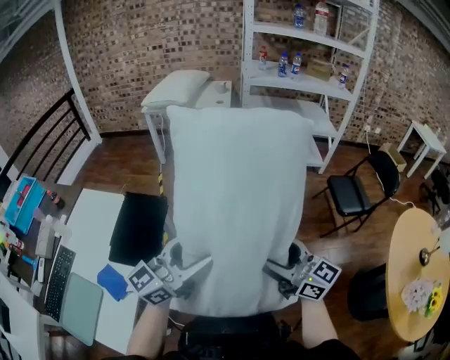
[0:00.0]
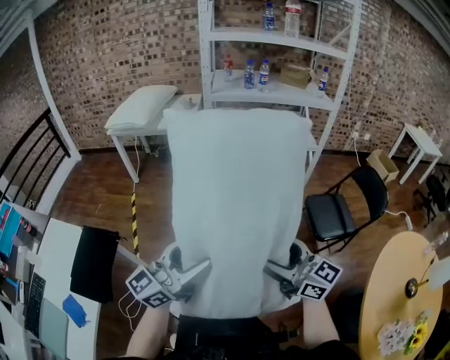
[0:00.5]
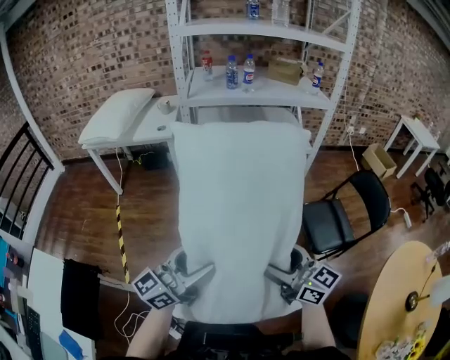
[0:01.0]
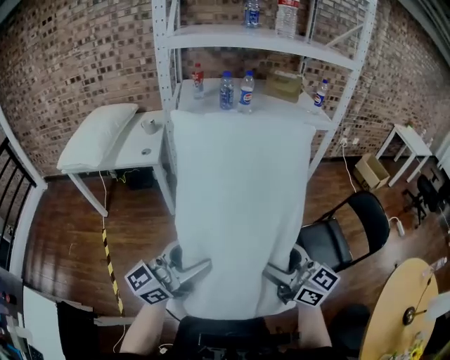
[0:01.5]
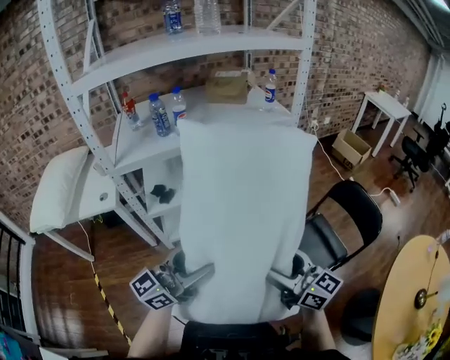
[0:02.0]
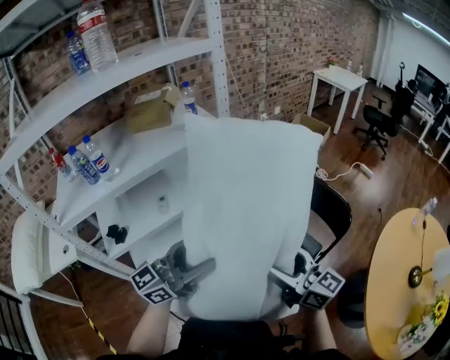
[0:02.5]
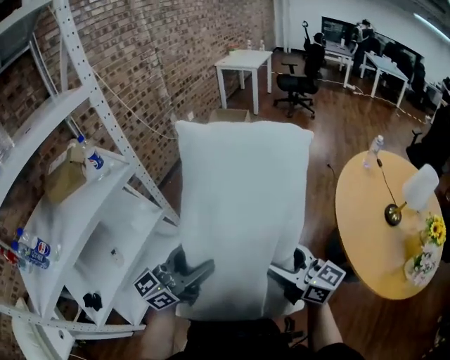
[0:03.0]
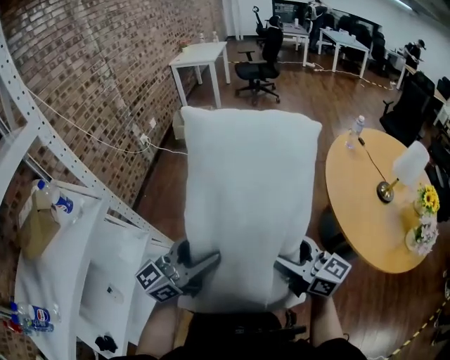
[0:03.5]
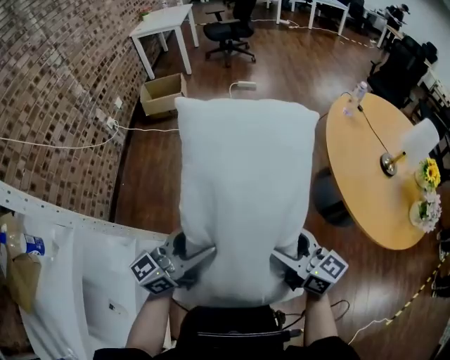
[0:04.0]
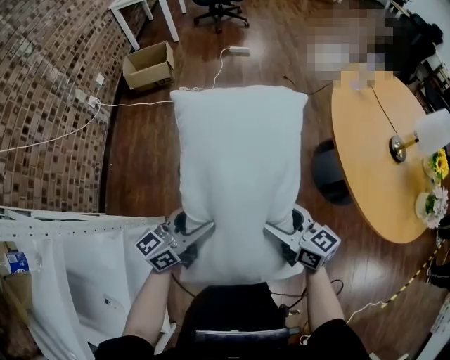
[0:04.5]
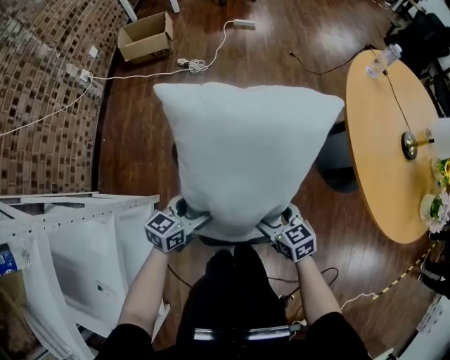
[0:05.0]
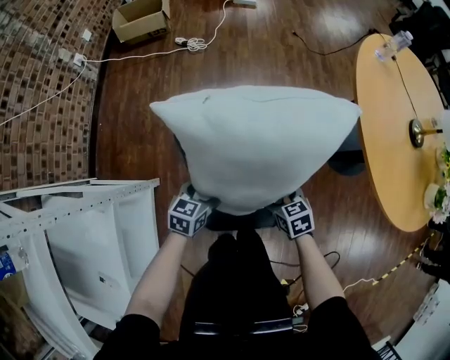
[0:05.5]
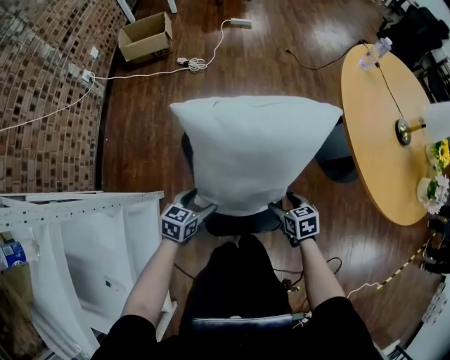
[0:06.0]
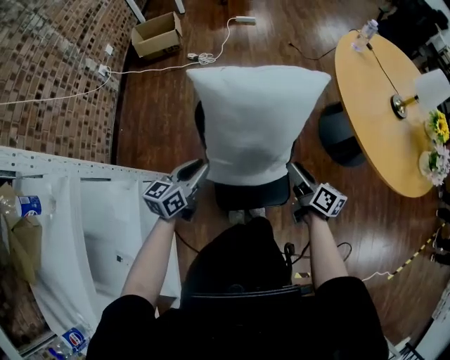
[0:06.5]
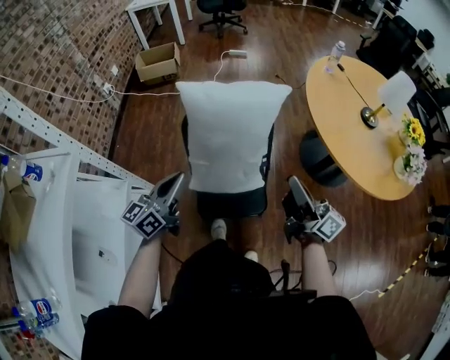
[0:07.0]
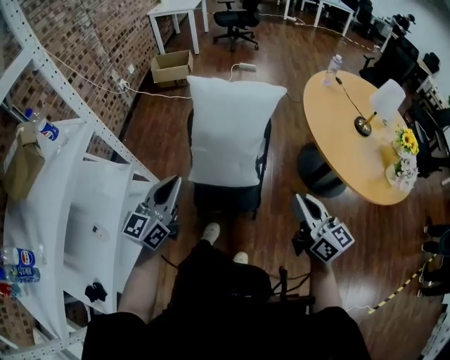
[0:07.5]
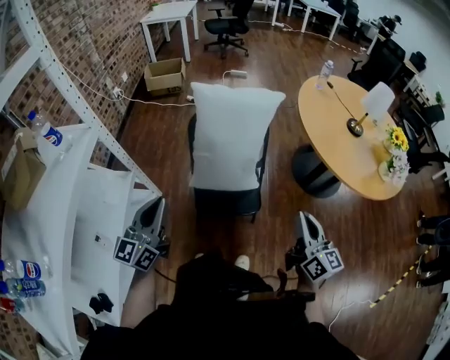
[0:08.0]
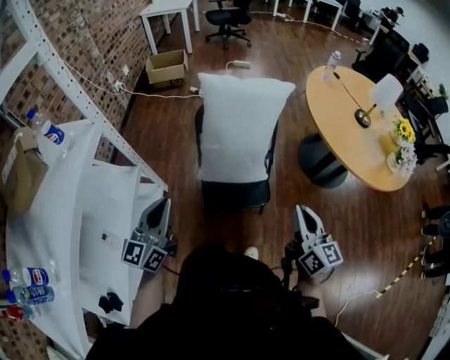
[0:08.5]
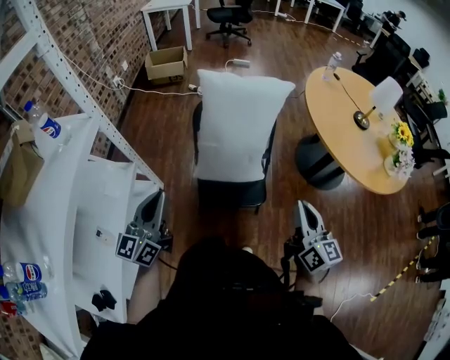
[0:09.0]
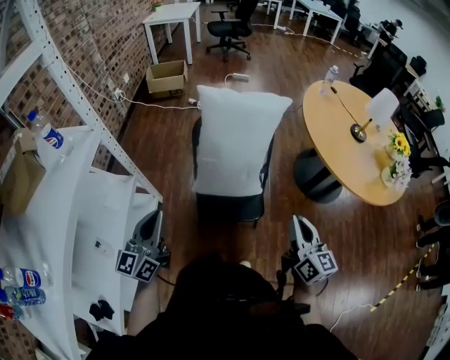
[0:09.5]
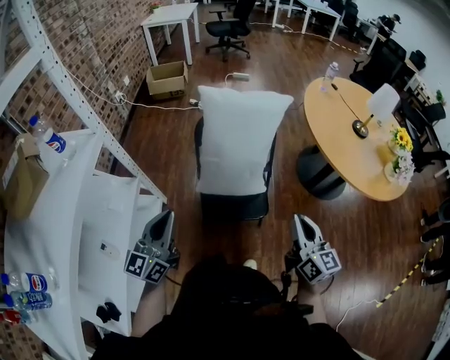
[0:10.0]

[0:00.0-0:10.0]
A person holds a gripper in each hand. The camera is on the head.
0:00.0 to 0:02.0: The two grippers travel together, approximately 90 cm. The right gripper changes its angle by roughly 30 degrees. Meanwhile the left gripper rotates approximately 30 degrees.
0:02.0 to 0:04.0: The pair of grippers is taken some 60 cm. The left gripper turns by roughly 70 degrees. Meanwhile the right gripper swivels approximately 70 degrees.
0:04.0 to 0:06.0: The two grippers go approximately 30 cm downward. The left gripper points its fingers approximately 50 degrees further downward. Meanwhile the right gripper tips its fingers downward by about 50 degrees.
0:06.0 to 0:08.0: Both grippers move upward and backward, some 50 cm. The left gripper tilts its fingers approximately 50 degrees upward, and closes up. Meanwhile the right gripper points its fingers about 60 degrees further upward, and closes its fingers.
0:08.0 to 0:10.0: The right gripper heads to the left, covering about 5 cm.

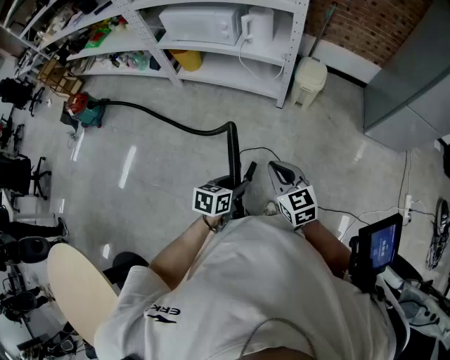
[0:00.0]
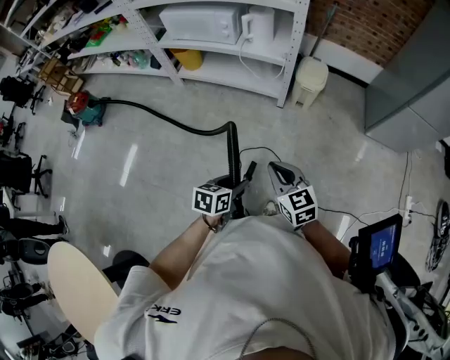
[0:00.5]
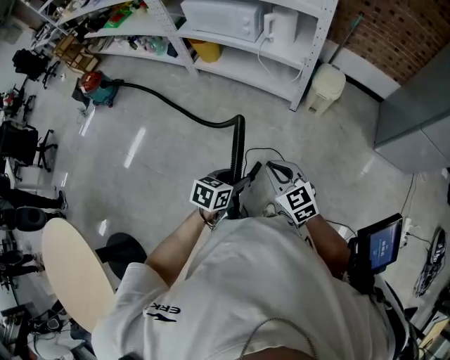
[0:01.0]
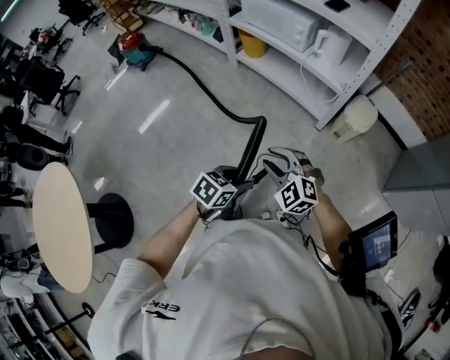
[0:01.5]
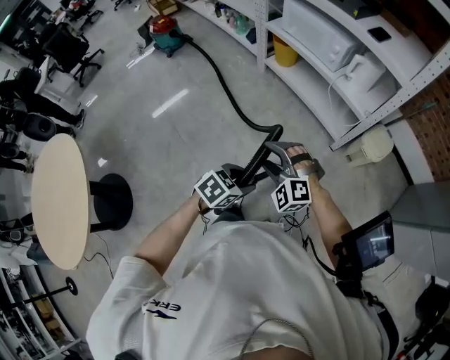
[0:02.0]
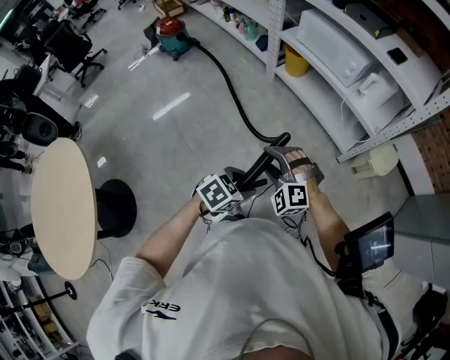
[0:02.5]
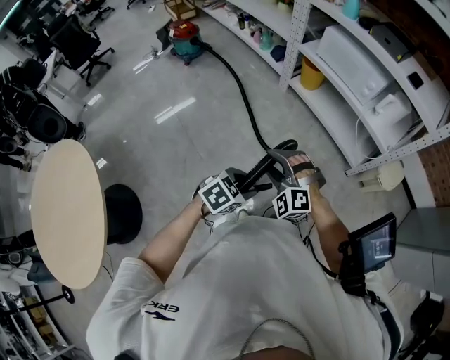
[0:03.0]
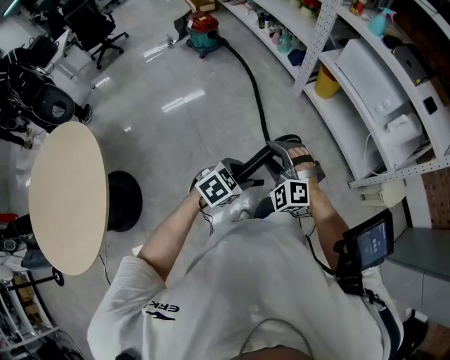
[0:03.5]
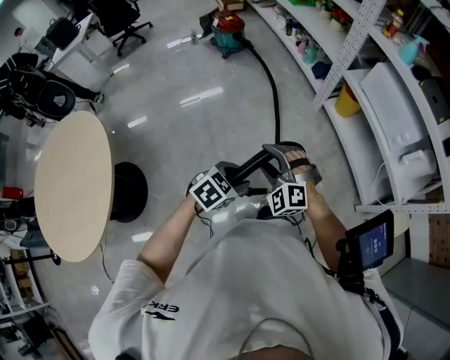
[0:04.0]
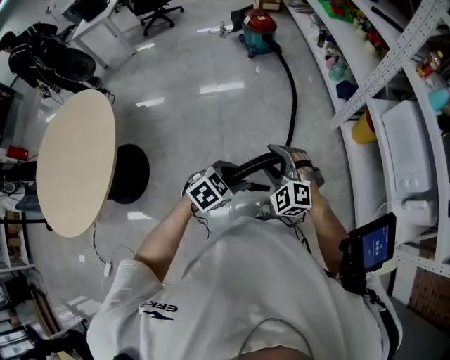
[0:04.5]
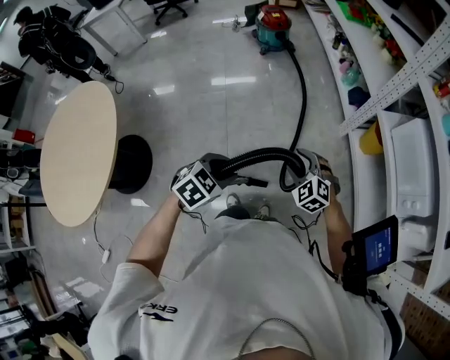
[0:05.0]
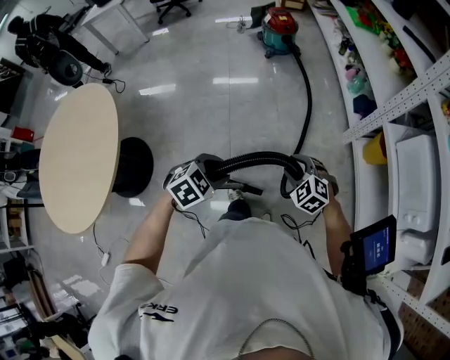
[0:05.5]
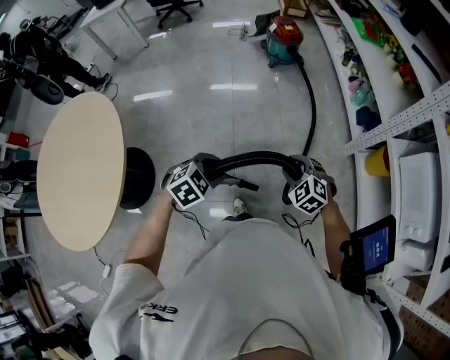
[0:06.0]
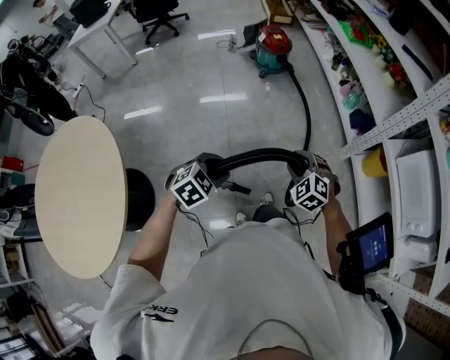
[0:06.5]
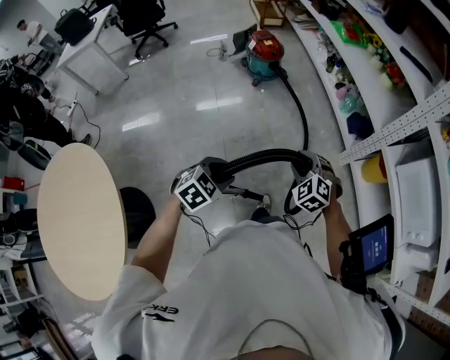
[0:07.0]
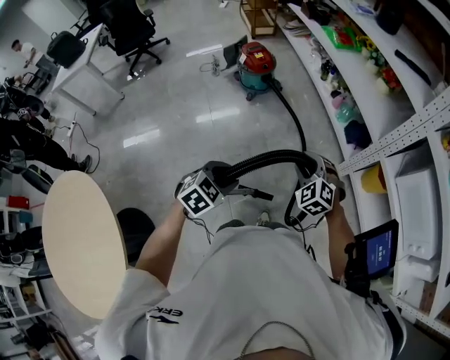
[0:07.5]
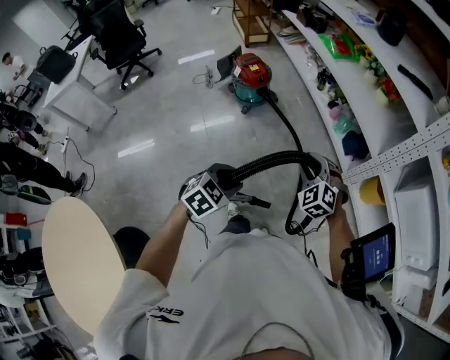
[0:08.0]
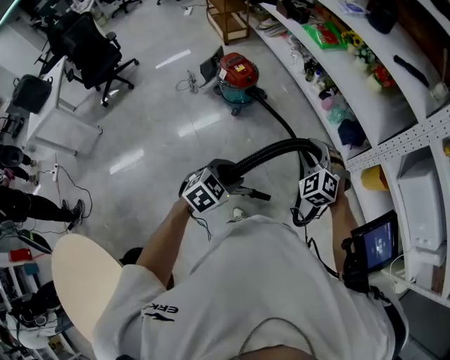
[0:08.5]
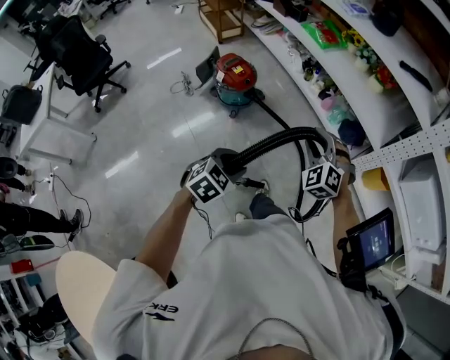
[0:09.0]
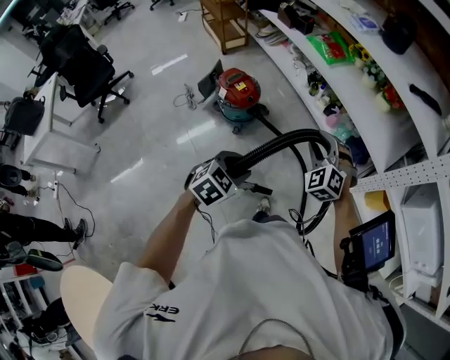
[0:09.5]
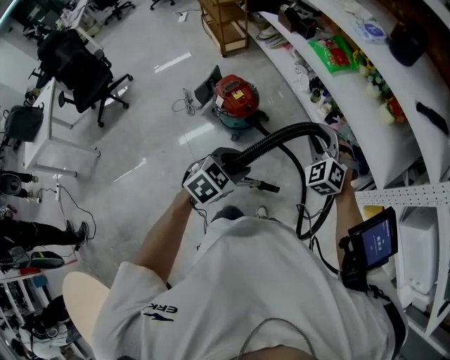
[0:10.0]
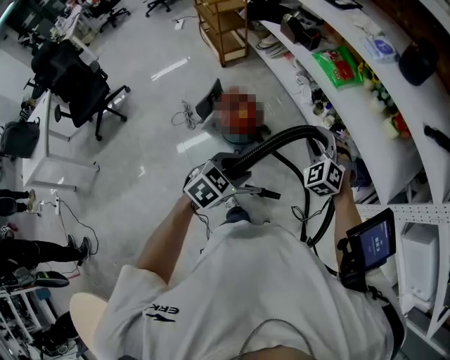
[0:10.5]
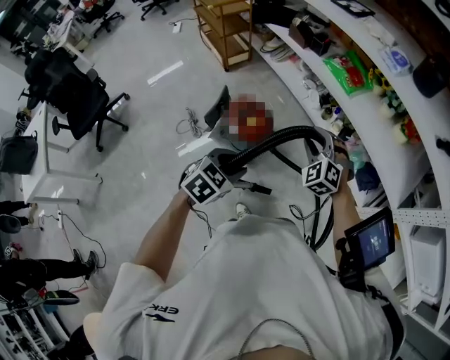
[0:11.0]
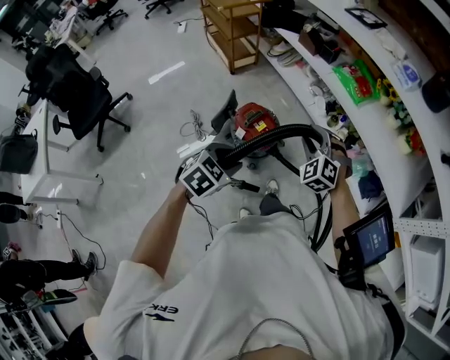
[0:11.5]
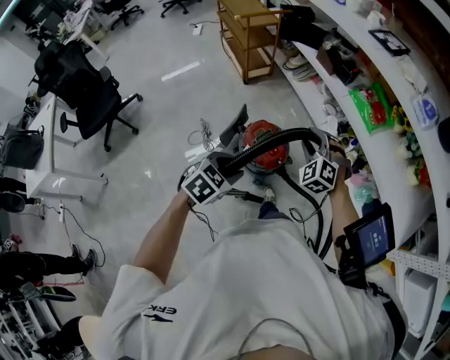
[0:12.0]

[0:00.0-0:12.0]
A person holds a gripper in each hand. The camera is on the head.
0:00.0 to 0:02.0: The right gripper moves to the left and forward, some 15 cm, rotates around the line of its fingers by approximately 80 degrees, counterclockwise from behind, and opens up. Meanwhile the left gripper shifts by about 5 cm.
0:02.0 to 0:04.0: The grippers both shift to the left by roughly 35 cm.
0:04.0 to 0:06.0: The right gripper shifts roughly 25 cm forward, and rotates roughly 30 degrees, while the left gripper goes roughly 30 cm to the left and forward.
0:06.0 to 0:08.0: Both grippers move forward, approximately 40 cm. The right gripper changes its angle by some 30 degrees.
0:08.0 to 0:10.0: The grippers both shift forward and to the left by roughly 35 cm.
0:10.0 to 0:12.0: Both grippers move to the left and forward, approximately 40 cm.

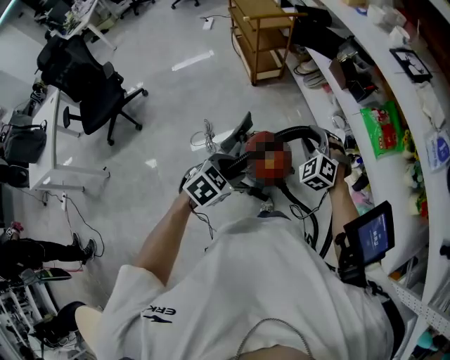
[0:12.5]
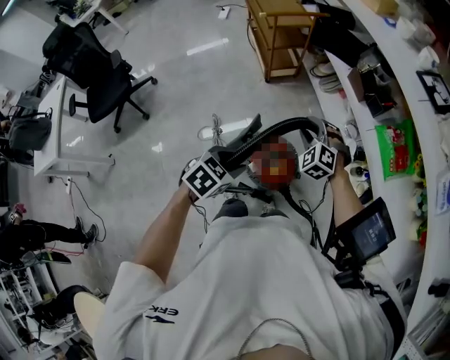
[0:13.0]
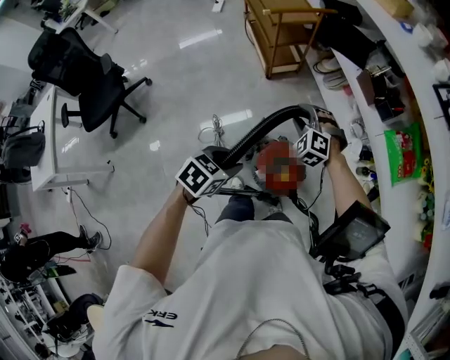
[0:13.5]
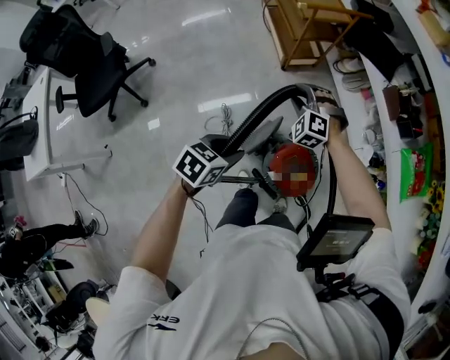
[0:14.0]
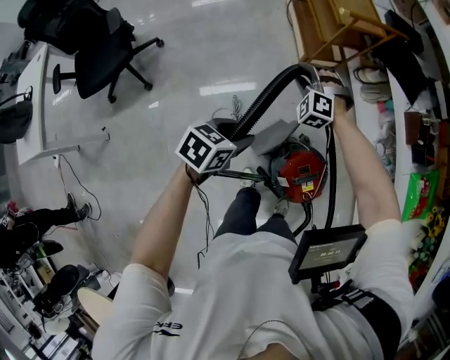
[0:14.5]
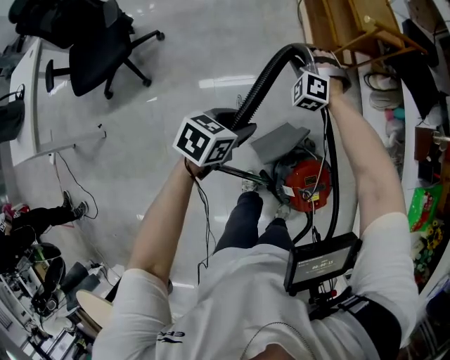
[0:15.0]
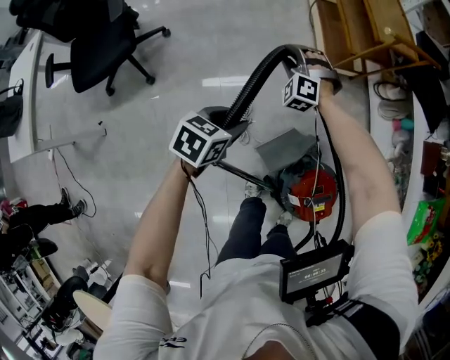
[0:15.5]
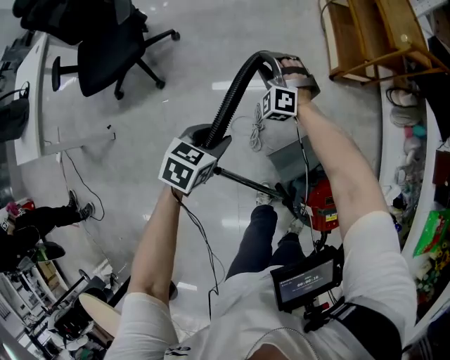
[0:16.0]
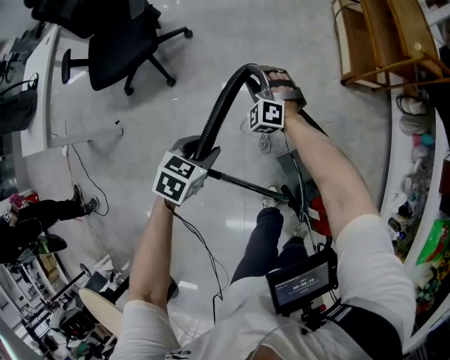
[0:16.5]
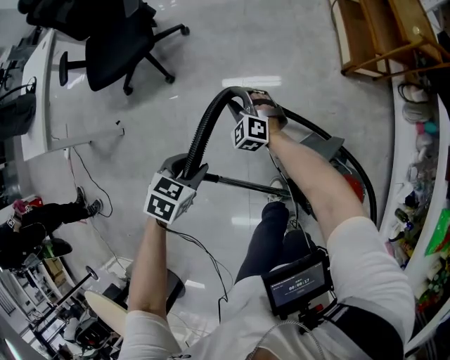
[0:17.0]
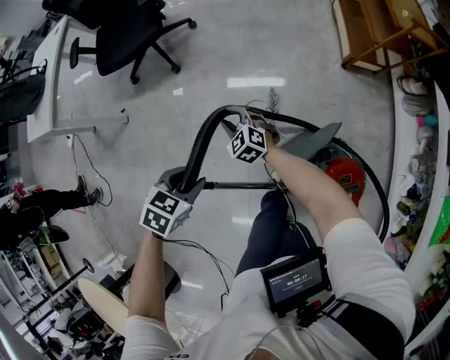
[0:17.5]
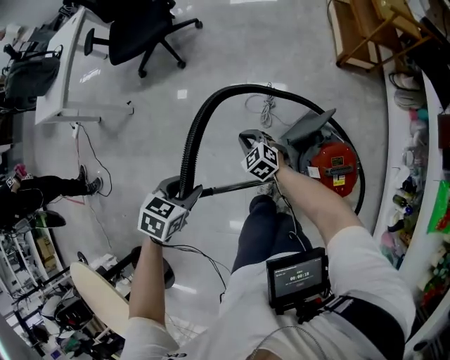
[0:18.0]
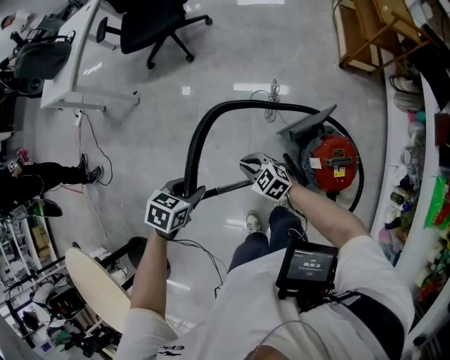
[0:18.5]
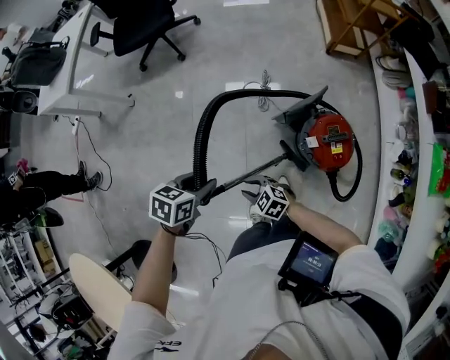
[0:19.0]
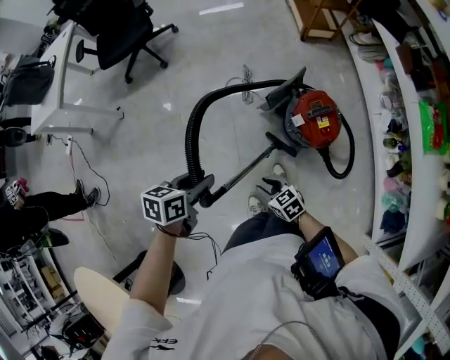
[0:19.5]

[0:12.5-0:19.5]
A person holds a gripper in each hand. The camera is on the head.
0:12.5 to 0:14.5: Both grippers travel together to the left and forward, approximately 50 cm. The right gripper turns by some 30 degrees. The left gripper rotates about 30 degrees.
0:14.5 to 0:16.0: The left gripper travels to the left and downward by approximately 25 cm, while the right gripper travels to the left by some 25 cm.
0:16.0 to 0:17.5: The two grippers go some 25 cm backward. The right gripper changes its angle by about 40 degrees.
0:17.5 to 0:19.5: The left gripper shifts by roughly 35 cm, and changes its angle by some 30 degrees; the right gripper moves roughly 60 cm, swivels roughly 40 degrees, and closes and opens again.
